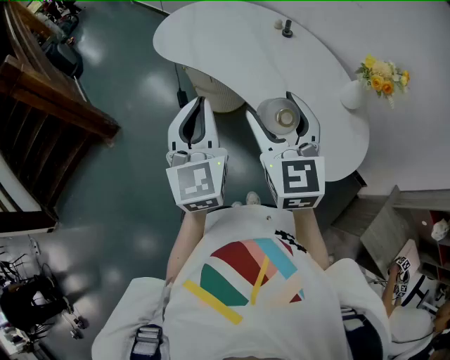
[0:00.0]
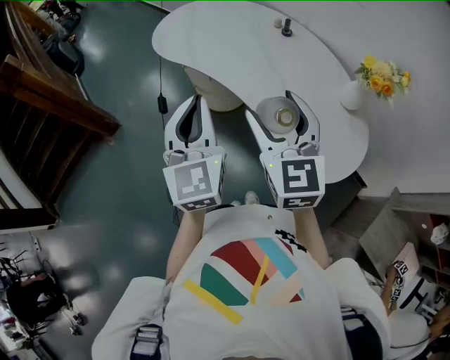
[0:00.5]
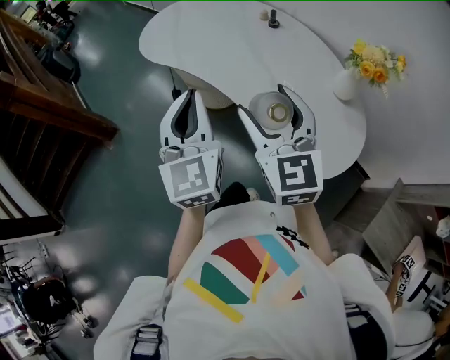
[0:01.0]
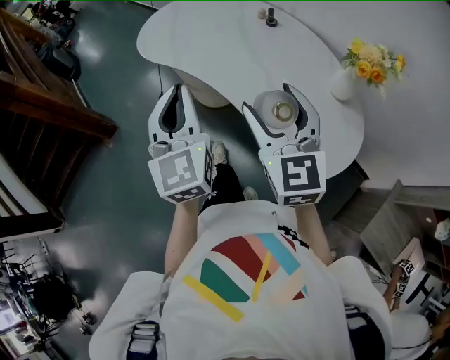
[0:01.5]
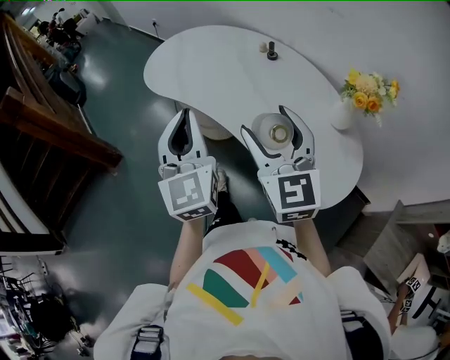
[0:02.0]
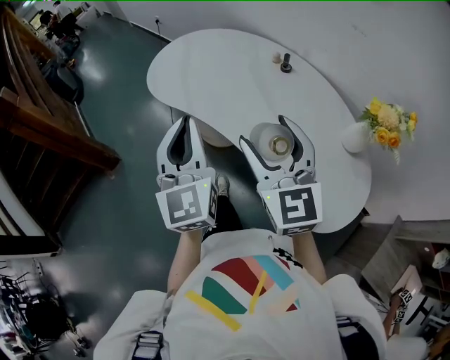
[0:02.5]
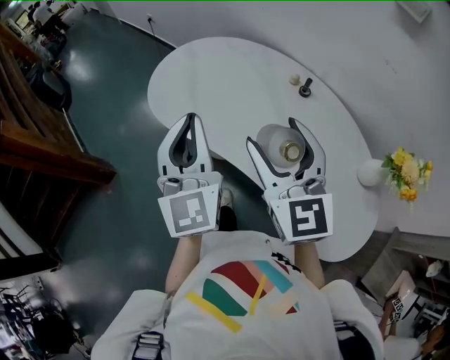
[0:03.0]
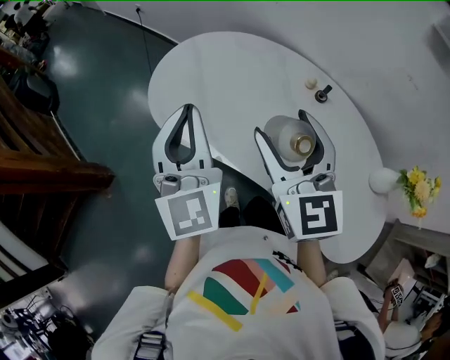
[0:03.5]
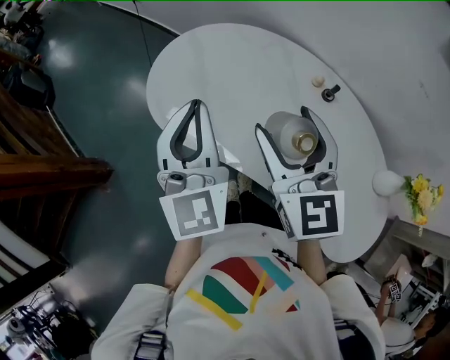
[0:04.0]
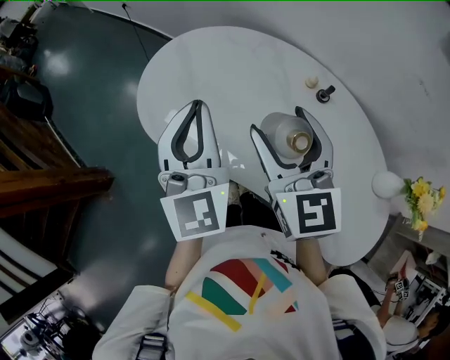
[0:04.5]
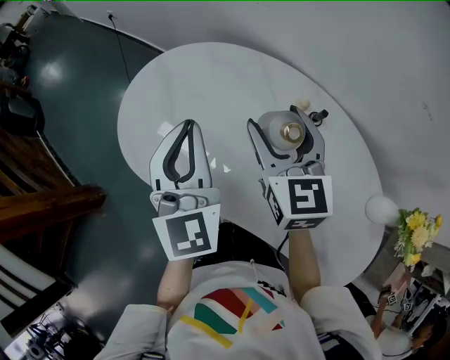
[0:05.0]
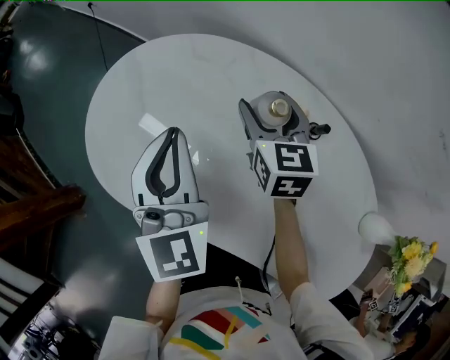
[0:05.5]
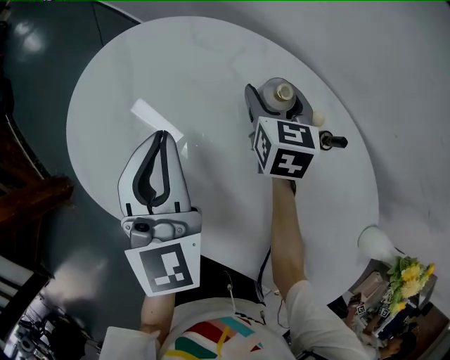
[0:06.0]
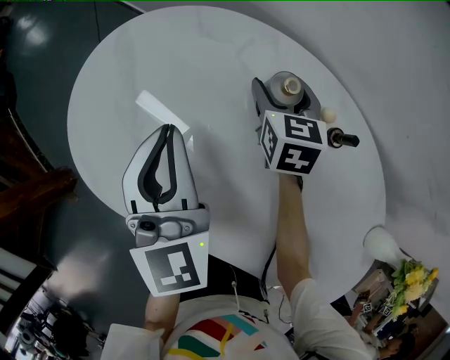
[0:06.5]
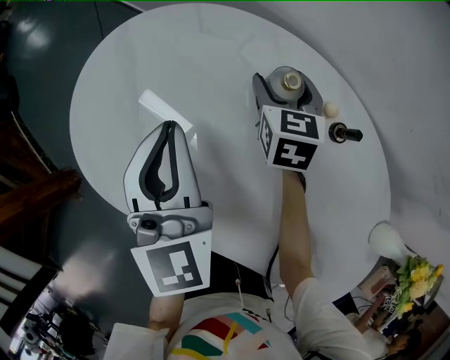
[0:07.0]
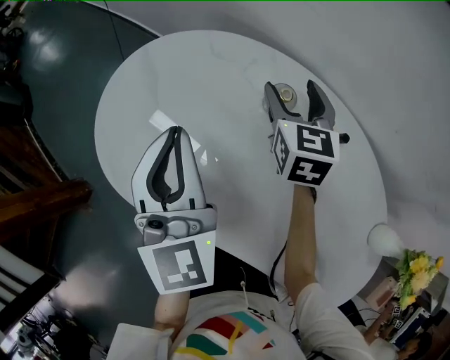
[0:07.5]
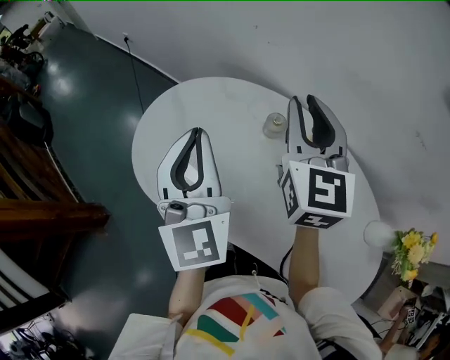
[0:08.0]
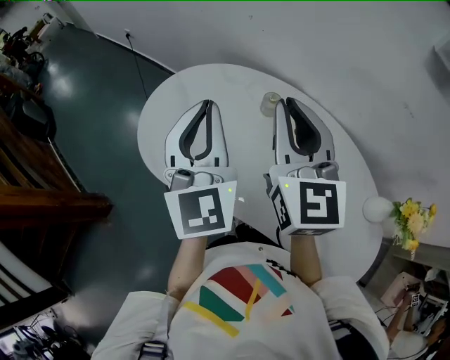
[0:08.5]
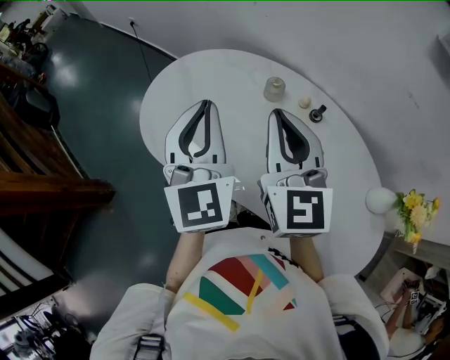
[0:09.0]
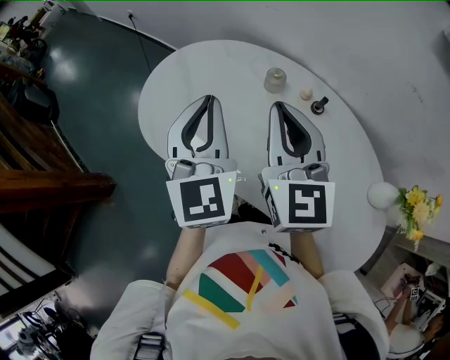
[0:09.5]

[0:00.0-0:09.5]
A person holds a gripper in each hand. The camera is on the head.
0:00.0 to 0:02.0: The left gripper shifts roughly 5 cm forward; the right gripper goes approximately 5 cm to the right.
0:02.0 to 0:04.0: Both grippers travel together forward and to the left, about 40 cm.
0:04.0 to 0:05.5: The left gripper heads forward, downward and to the right, covering approximately 20 cm; the right gripper travels forward, downward and to the right by roughly 35 cm, and changes its angle by roughly 20 degrees.
0:05.5 to 0:07.5: The right gripper moves some 10 cm downward and comes back.
0:07.5 to 0:09.5: The right gripper heads backward and upward, covering some 30 cm, rotates about 20 degrees, and closes up; the left gripper goes about 15 cm upward and backward.

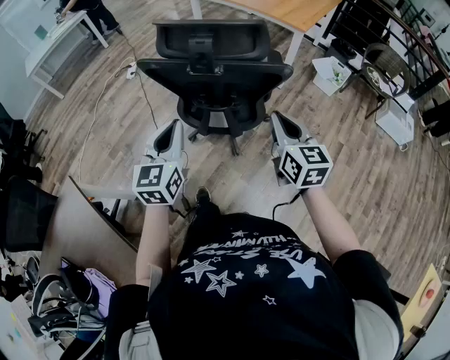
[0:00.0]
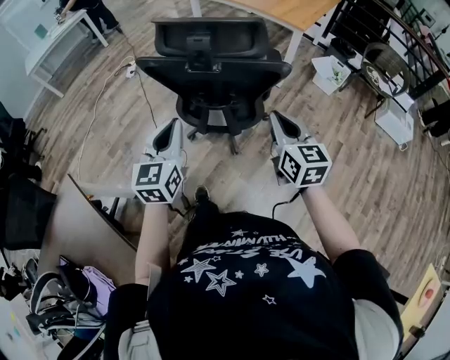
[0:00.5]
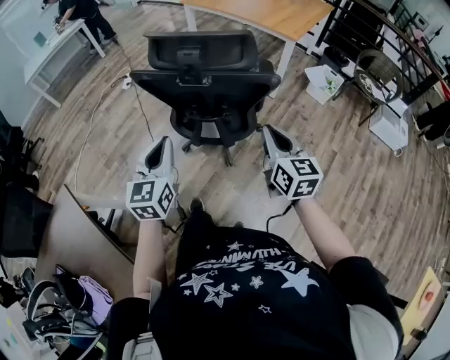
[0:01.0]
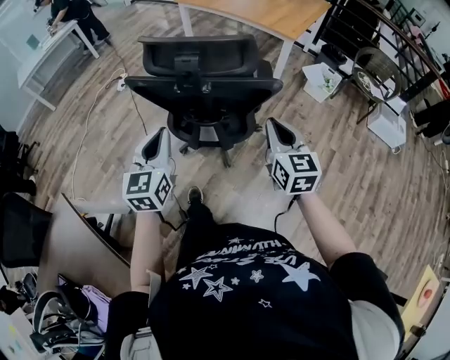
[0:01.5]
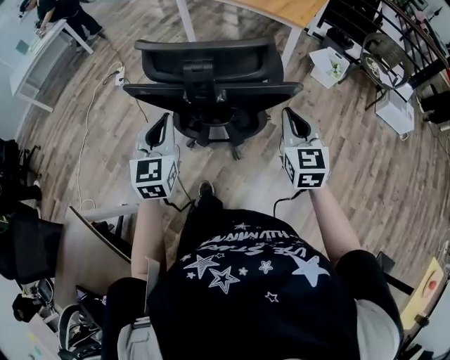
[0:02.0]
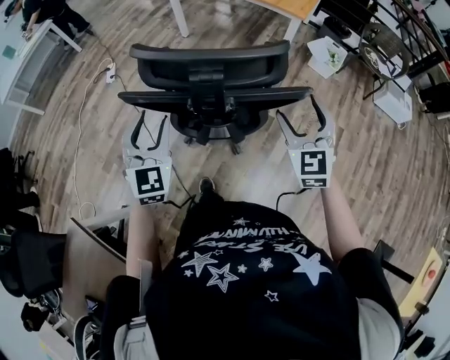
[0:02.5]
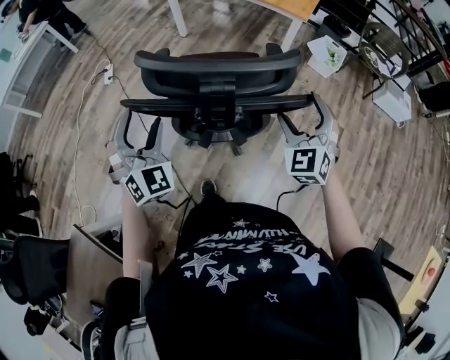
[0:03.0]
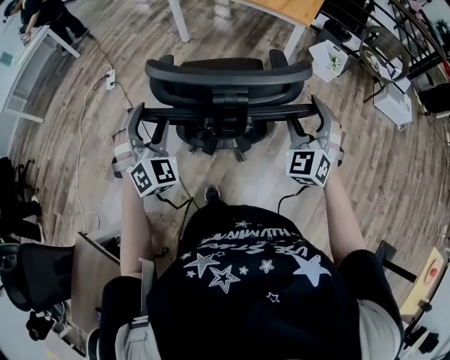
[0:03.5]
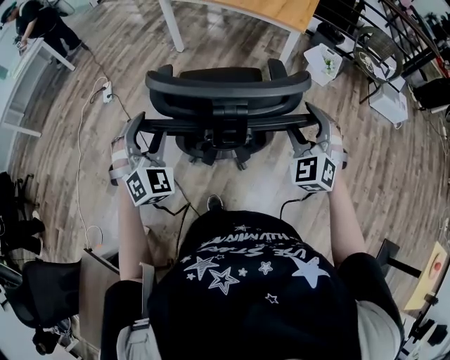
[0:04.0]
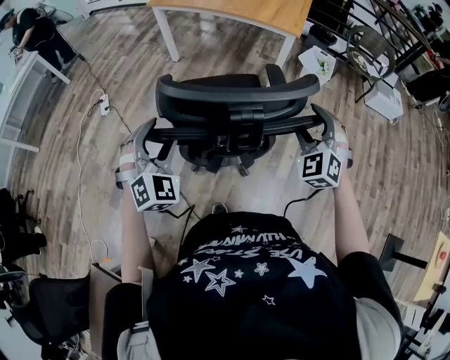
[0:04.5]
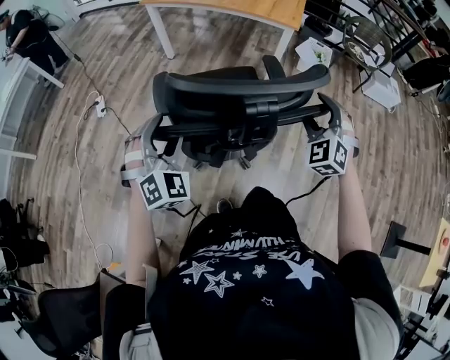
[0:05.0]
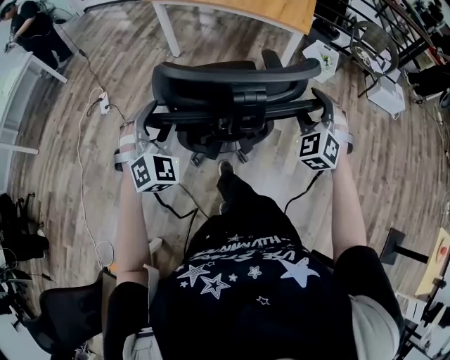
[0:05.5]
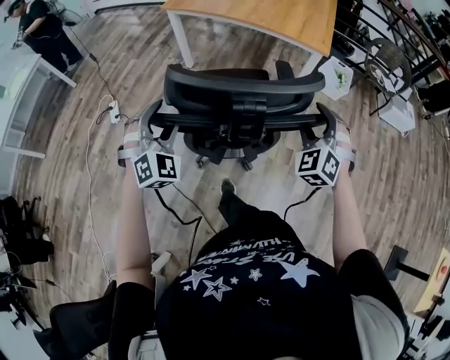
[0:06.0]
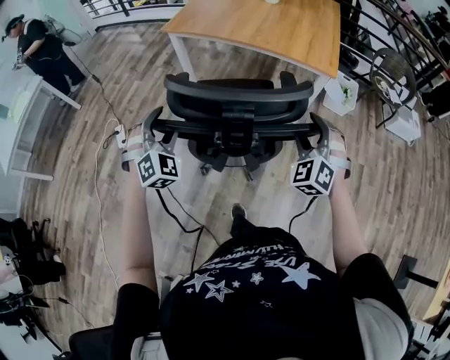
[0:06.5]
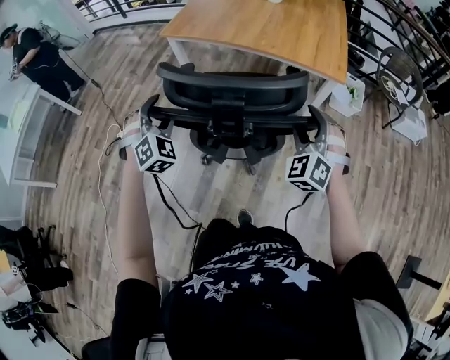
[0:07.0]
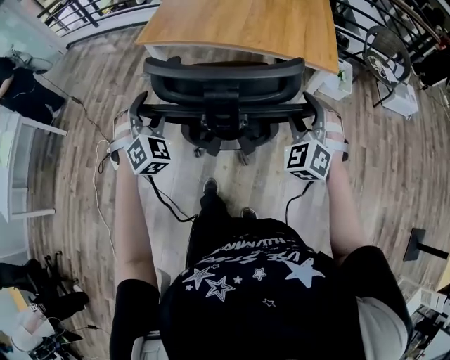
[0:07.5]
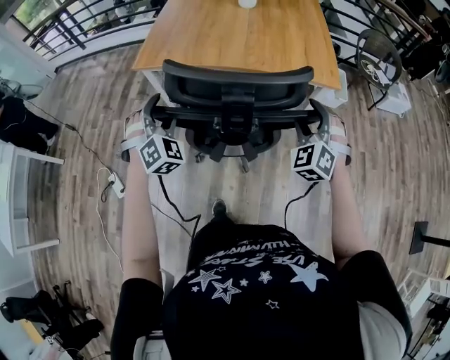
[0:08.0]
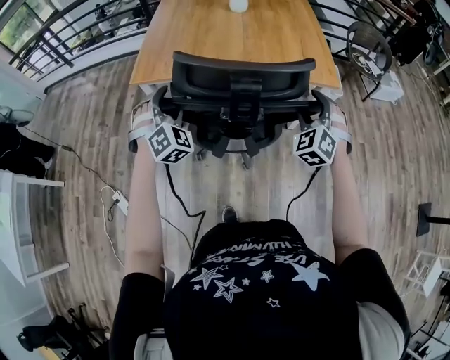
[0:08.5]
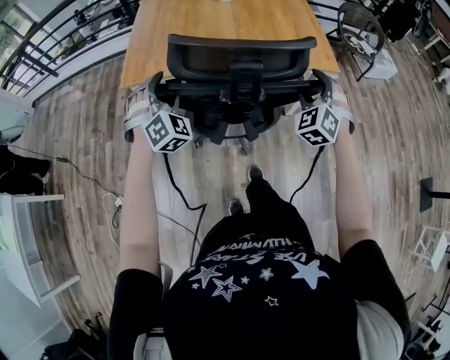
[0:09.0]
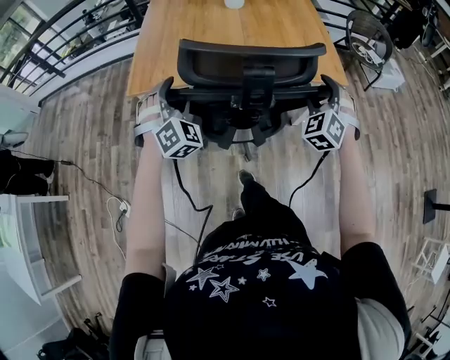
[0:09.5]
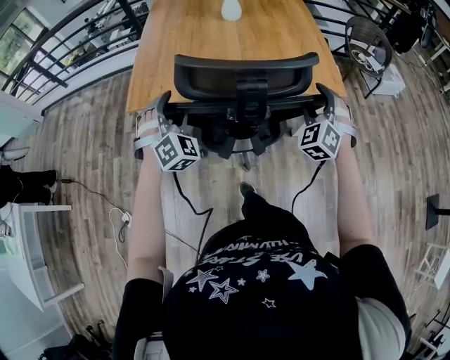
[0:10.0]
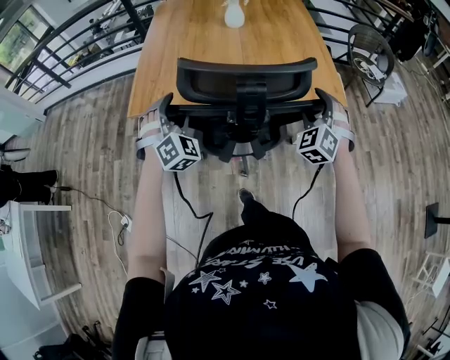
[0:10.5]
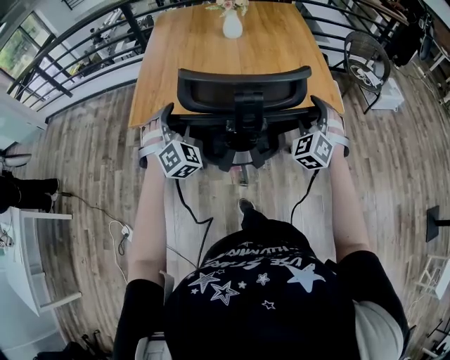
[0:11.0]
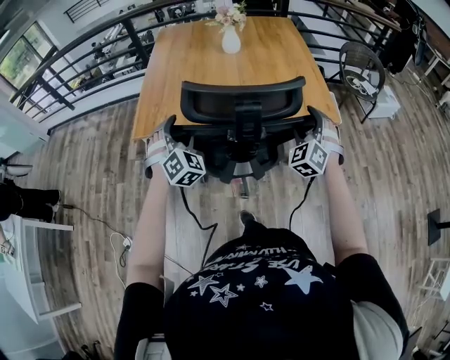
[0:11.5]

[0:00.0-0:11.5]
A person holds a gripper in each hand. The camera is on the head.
0:00.0 to 0:02.0: The two grippers go about 10 cm forward. The right gripper turns by roughly 20 degrees.
0:02.0 to 0:04.0: The left gripper is displaced forward and to the left by about 15 cm, rotates around the line of its fingers by approximately 50 degrees, clockwise from behind, and opens up. The right gripper moves forward, roughly 10 cm, rolls counterclockwise, seen from behind, by approximately 40 degrees, and opens up.
0:04.0 to 0:06.0: The two grippers go some 20 cm forward and to the left.
0:06.0 to 0:07.5: Both grippers travel together forward, some 25 cm.
0:07.5 to 0:09.5: The grippers both shift forward by approximately 25 cm. The right gripper swivels approximately 20 degrees.
0:09.5 to 0:11.5: There are only small adjustments of the grippers.

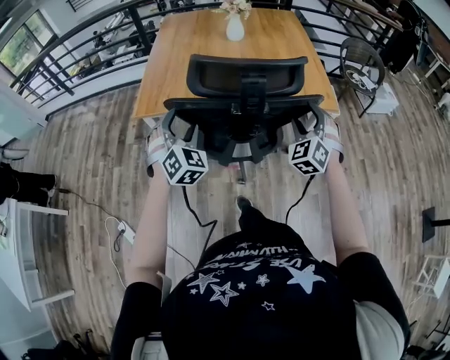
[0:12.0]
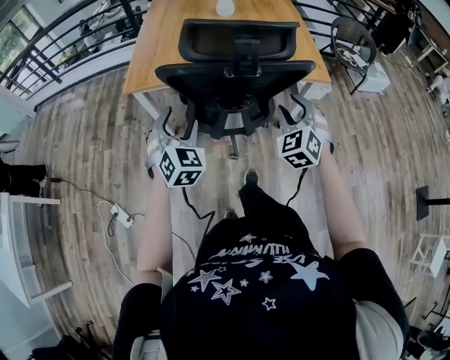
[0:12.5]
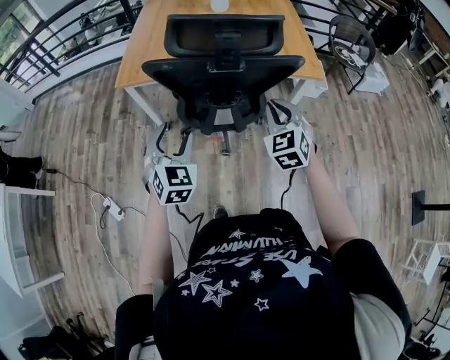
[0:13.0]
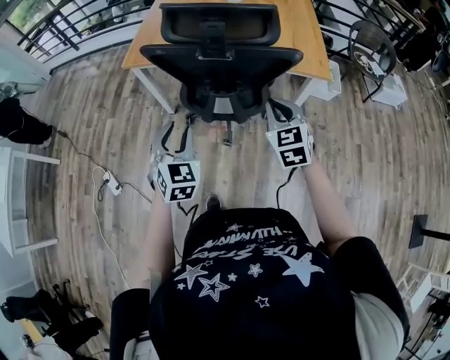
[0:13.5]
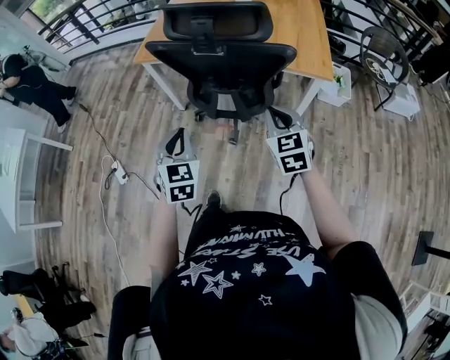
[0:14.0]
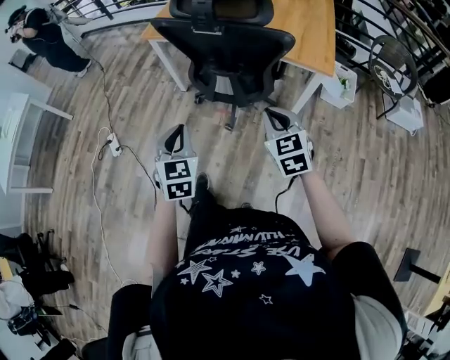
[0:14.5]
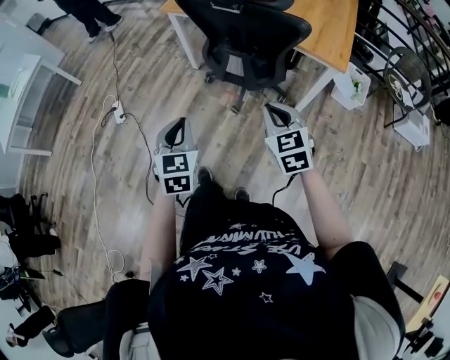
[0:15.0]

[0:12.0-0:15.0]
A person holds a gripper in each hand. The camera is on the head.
0:12.0 to 0:13.5: The right gripper goes roughly 10 cm backward, swivels some 40 degrees, and closes its fingers. Meanwhile the left gripper shifts about 20 cm backward and to the right, changes its angle by some 30 degrees, and closes its fingers.
0:13.5 to 0:15.0: The two grippers go roughly 20 cm backward. The right gripper turns by some 20 degrees, while the left gripper changes its angle by approximately 30 degrees, and closes its fingers.

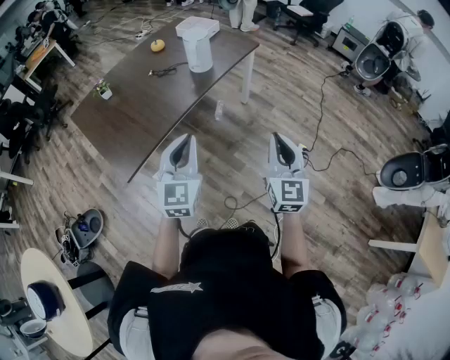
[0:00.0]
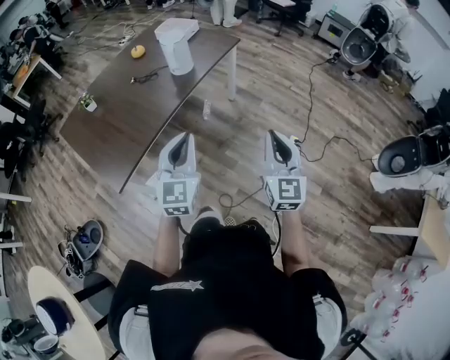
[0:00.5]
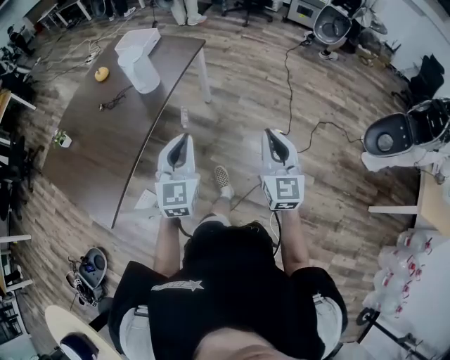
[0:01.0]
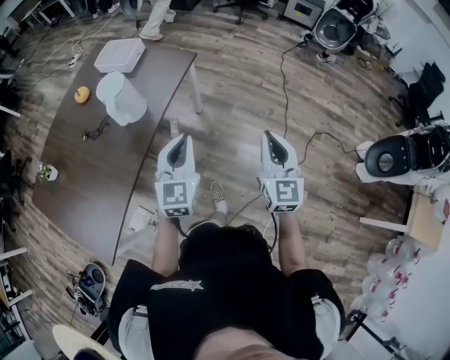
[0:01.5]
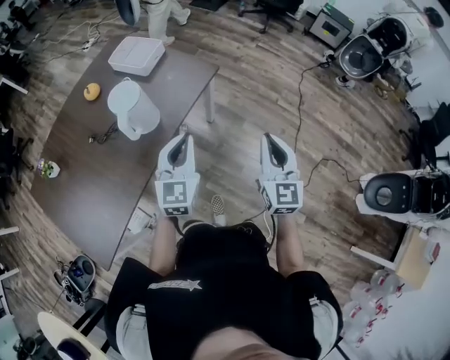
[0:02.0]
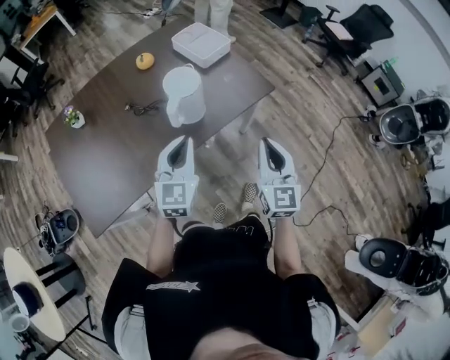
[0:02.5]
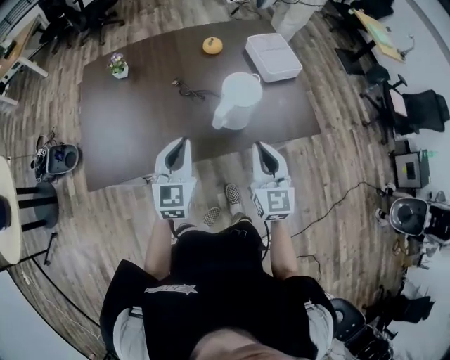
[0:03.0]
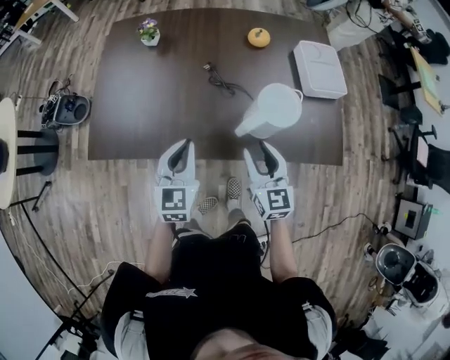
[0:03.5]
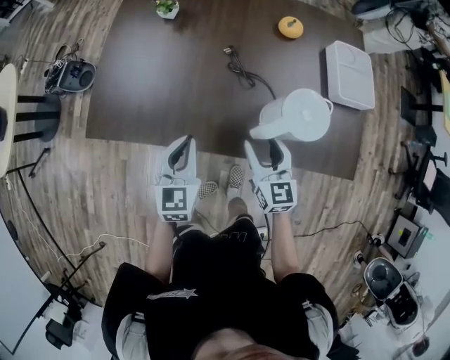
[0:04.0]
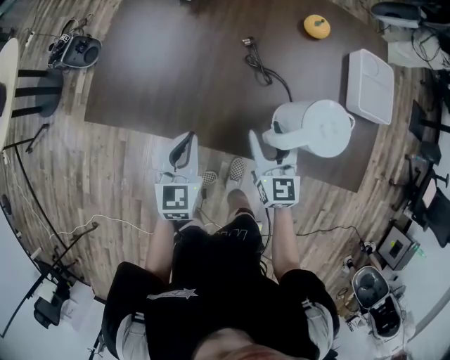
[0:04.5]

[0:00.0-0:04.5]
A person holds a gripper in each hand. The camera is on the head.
0:00.0 to 0:02.0: Both grippers are carried forward, roughly 40 cm.
0:02.0 to 0:04.5: The left gripper changes place by approximately 40 cm, and swivels about 70 degrees, while the right gripper shifts by some 60 cm, swivels approximately 80 degrees, and opens.
